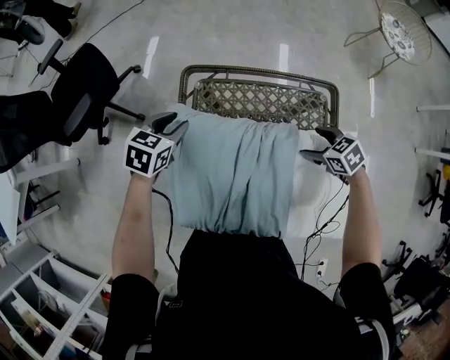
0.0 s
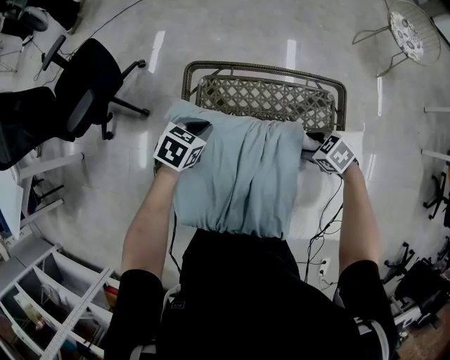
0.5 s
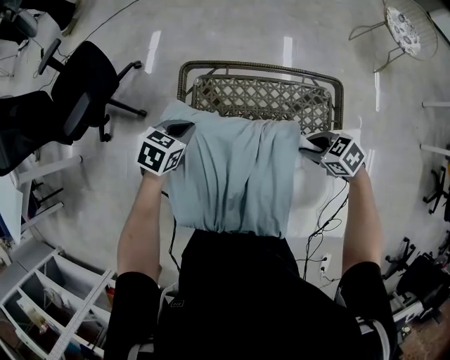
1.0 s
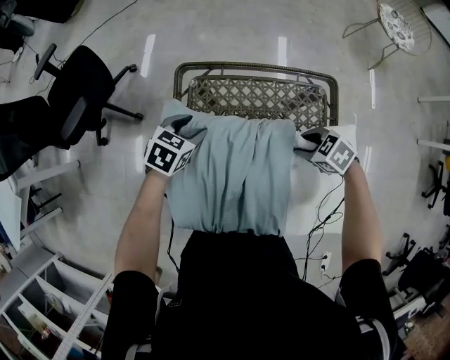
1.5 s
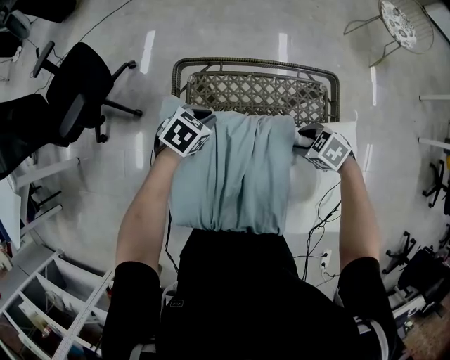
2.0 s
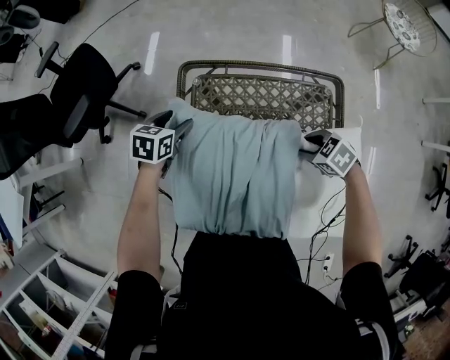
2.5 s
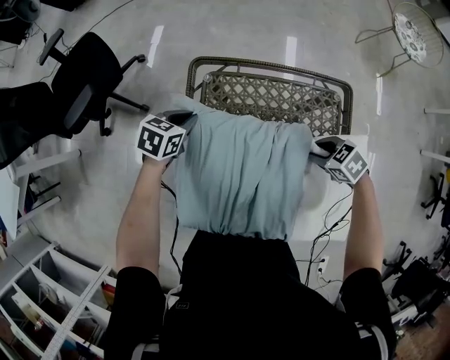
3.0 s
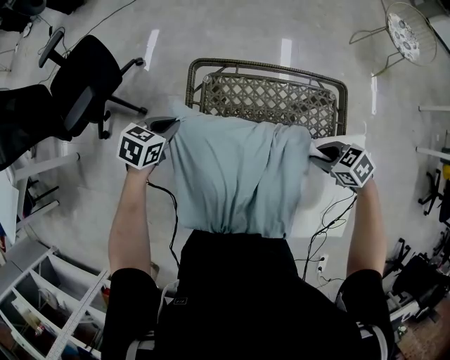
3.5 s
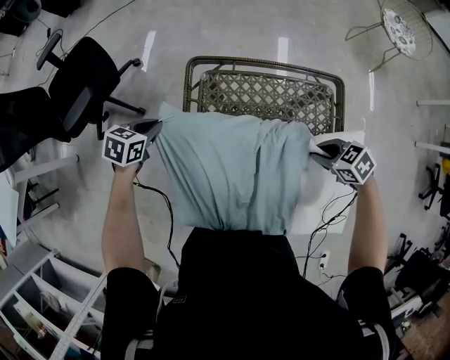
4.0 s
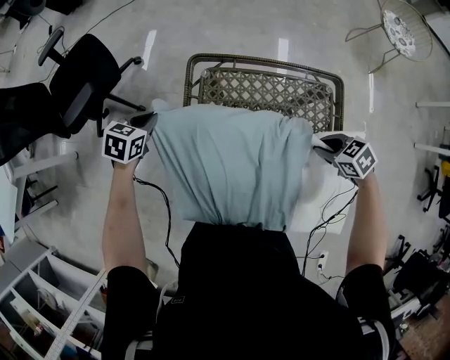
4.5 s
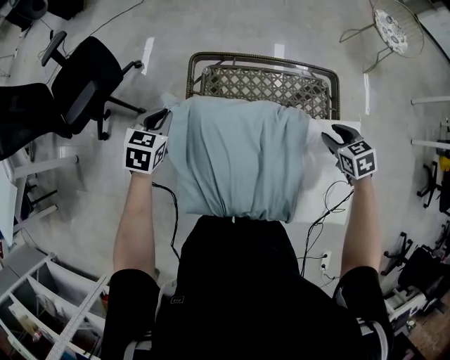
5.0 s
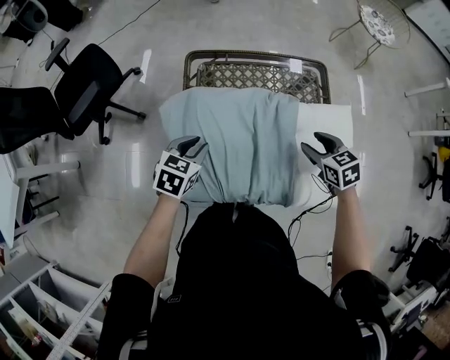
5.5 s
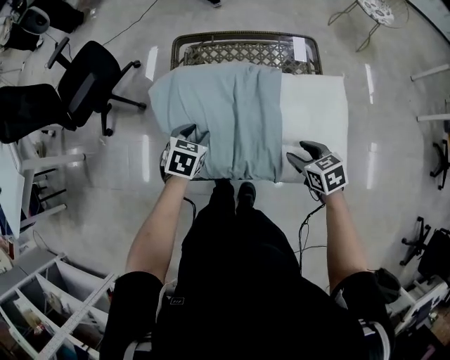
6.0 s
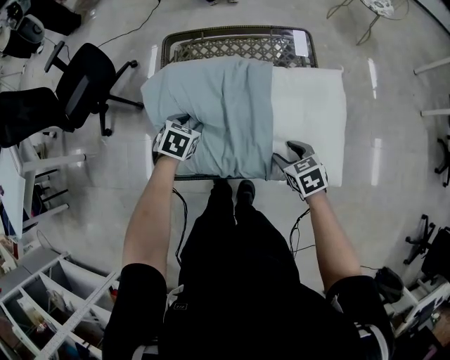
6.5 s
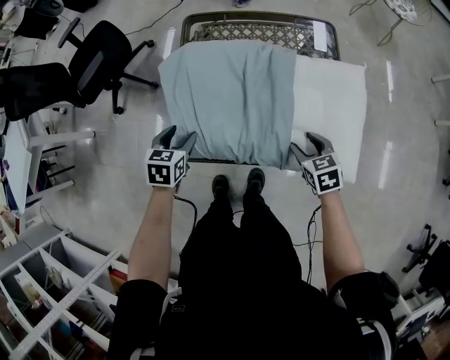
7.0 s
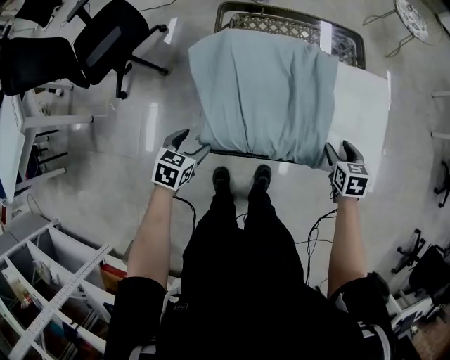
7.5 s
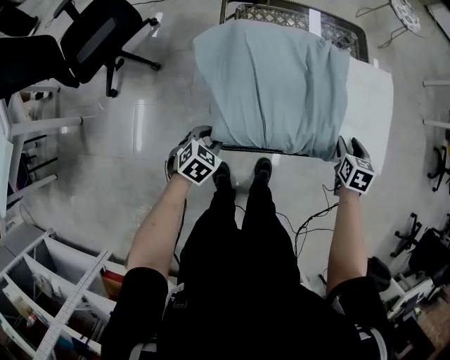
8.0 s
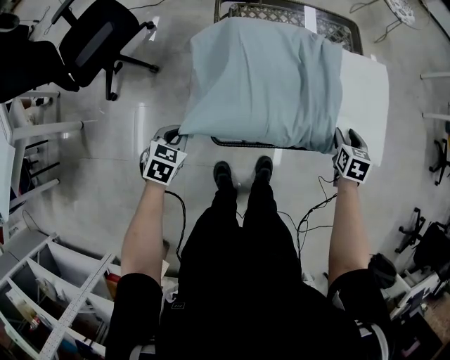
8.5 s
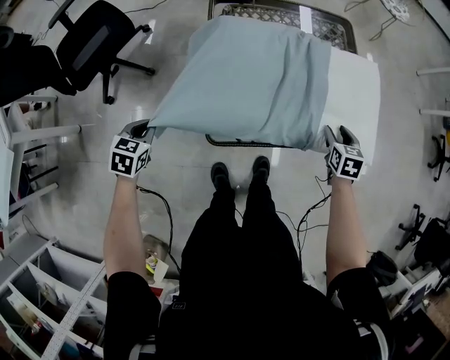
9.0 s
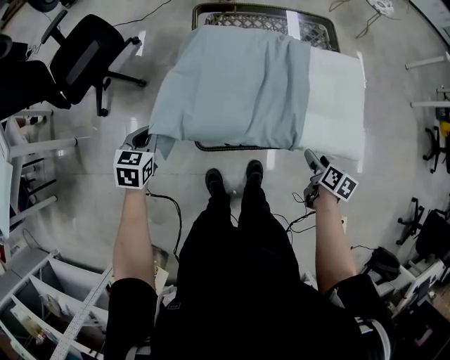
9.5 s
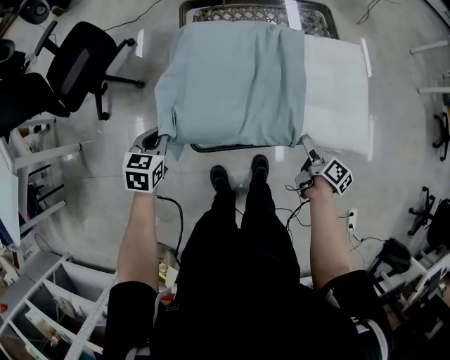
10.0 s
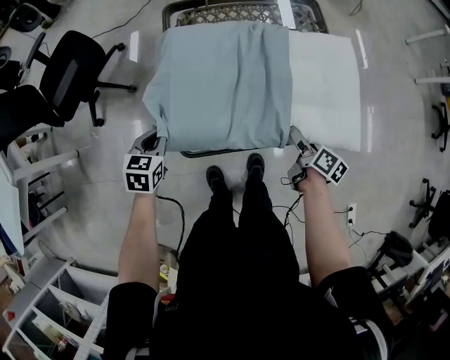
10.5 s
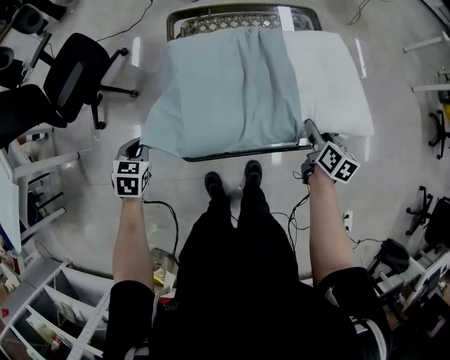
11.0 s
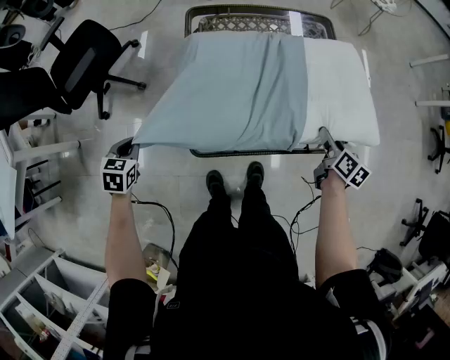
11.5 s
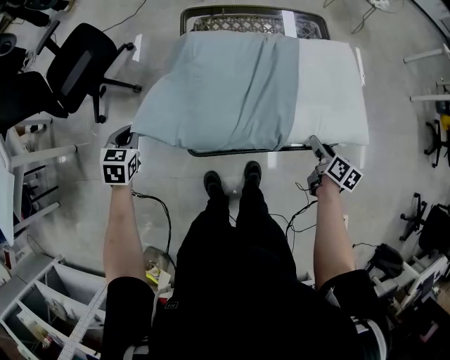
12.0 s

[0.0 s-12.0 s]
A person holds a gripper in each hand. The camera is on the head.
0.0 to 2.0 s: The right gripper moves roughly 5 cm, while the left gripper ends up roughly 10 cm from where it was.
2.0 to 4.0 s: The left gripper ends up about 20 cm from where it was, and opens and closes again. The right gripper shifts by about 5 cm.
4.0 to 6.0 s: The right gripper shifts by about 20 cm, and swivels about 30 degrees; the left gripper moves about 25 cm, and opens up.
6.0 to 8.0 s: The right gripper turns by about 40 degrees. Meanwhile the left gripper goes up and down, some 10 cm each way, reversing 2 times, and opens and closes again.
8.0 to 10.0 s: The left gripper goes some 10 cm upward and to the left, turns by roughly 20 degrees, and closes its fingers. The right gripper travels backward by some 5 cm, rotates around the line of its fingers by about 60 degrees, clockwise from behind, and opens its fingers.
10.0 to 12.0 s: The left gripper shifts some 10 cm to the left; the right gripper travels forward and back again, some 10 cm each way, and swivels approximately 30 degrees.

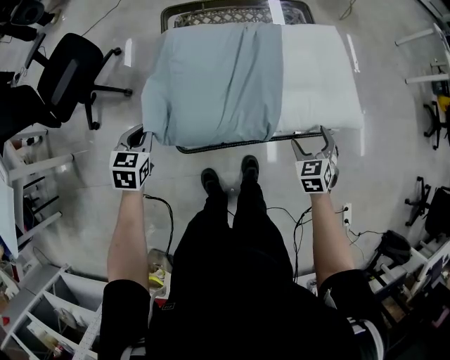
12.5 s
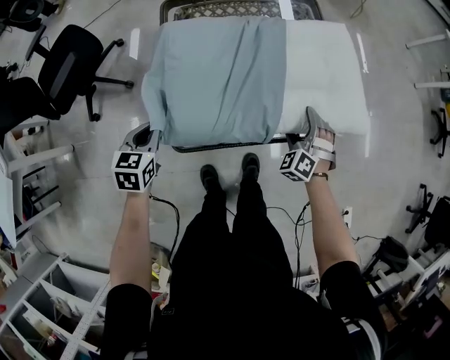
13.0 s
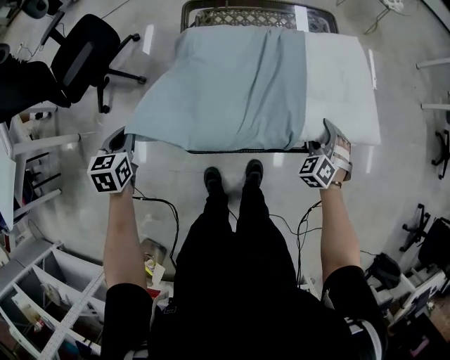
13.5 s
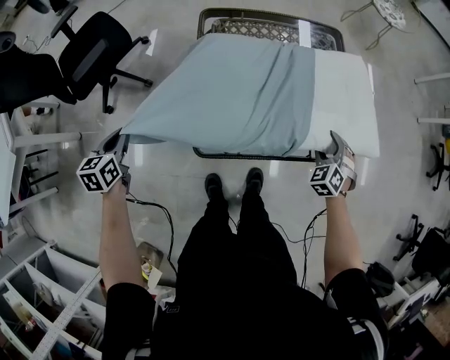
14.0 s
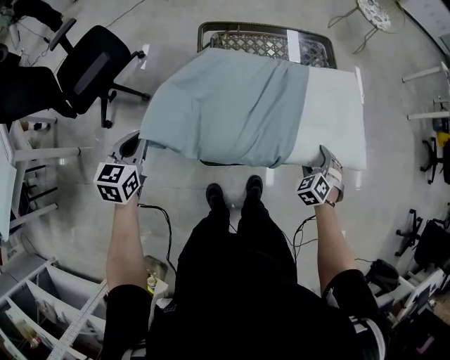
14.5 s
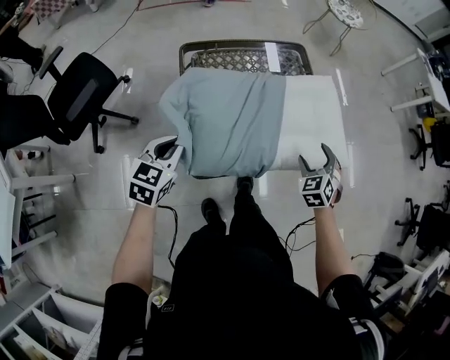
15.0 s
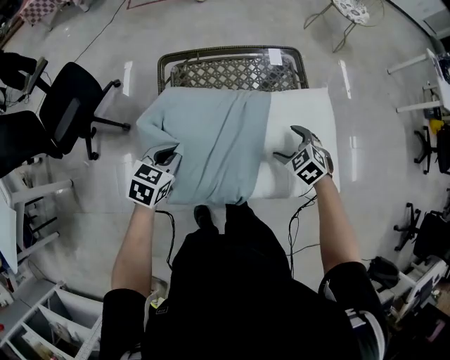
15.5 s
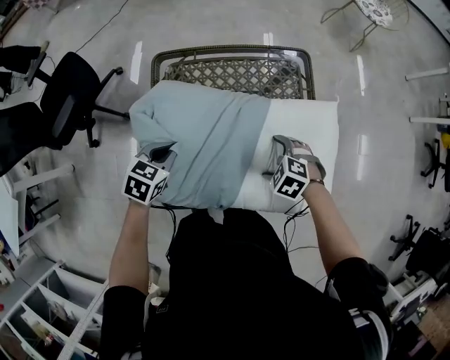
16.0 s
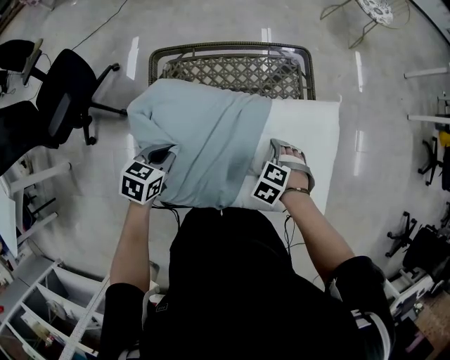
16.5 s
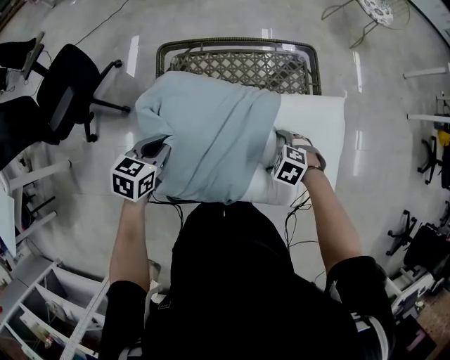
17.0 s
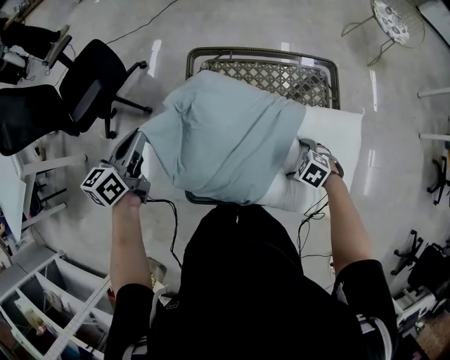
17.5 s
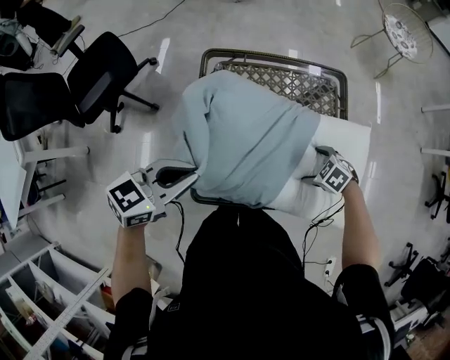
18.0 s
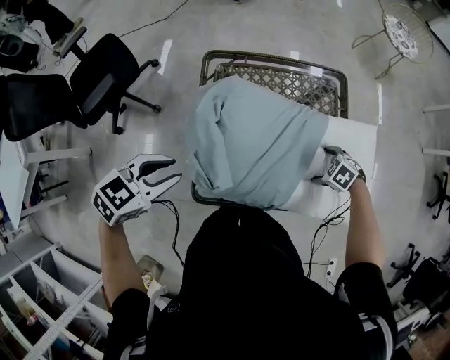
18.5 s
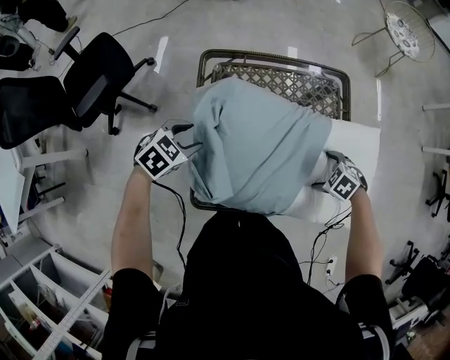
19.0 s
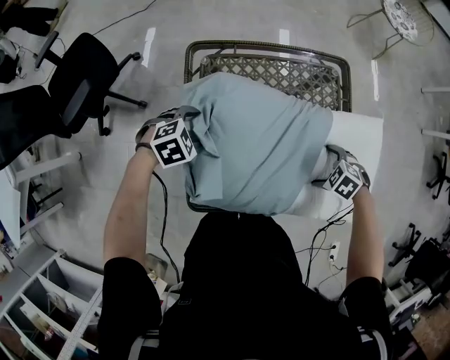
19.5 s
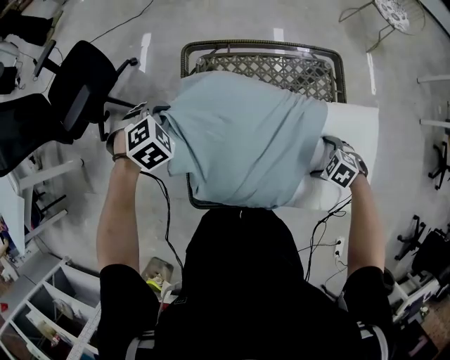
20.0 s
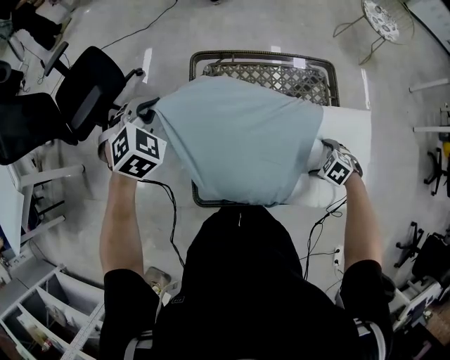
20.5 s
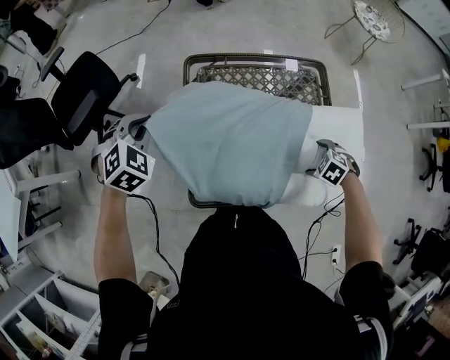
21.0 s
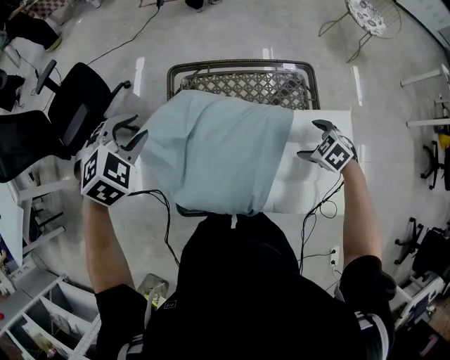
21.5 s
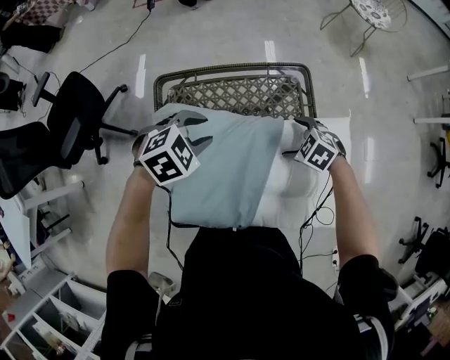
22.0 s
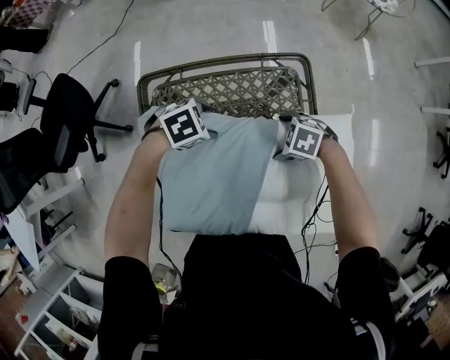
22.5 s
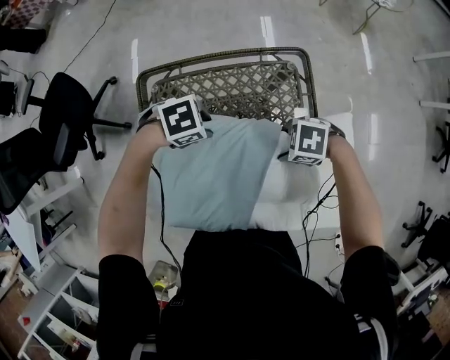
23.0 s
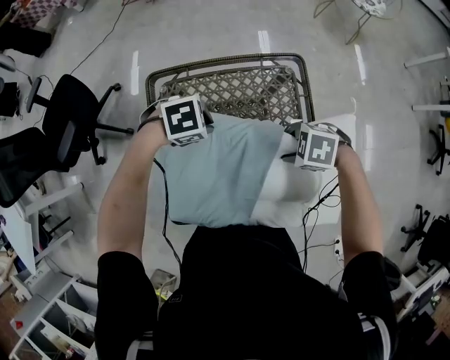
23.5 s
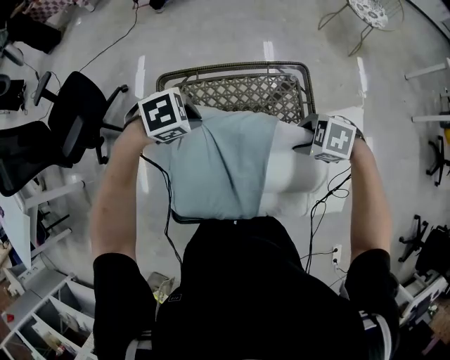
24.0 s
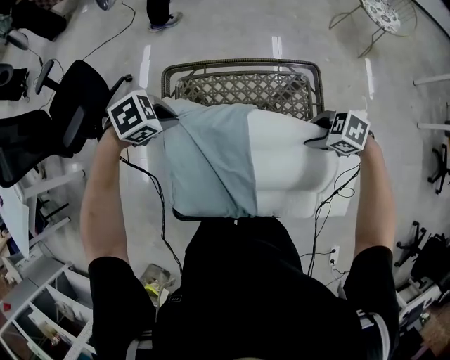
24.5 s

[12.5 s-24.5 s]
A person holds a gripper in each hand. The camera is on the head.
12.5 to 14.5 s: The left gripper moves left and right over roughly 20 cm, changing direction 2 times, while the right gripper changes its angle by some 30 degrees.
14.5 to 16.5 s: The left gripper ends up some 30 cm from where it was, and swivels about 30 degrees. The right gripper goes upward and returns, about 10 cm each way, points its fingers some 30 degrees further downward, and opens its fingers.
16.5 to 18.5 s: The right gripper changes place by roughly 5 cm; the left gripper heads upward, covering about 15 cm, rotates some 20 degrees, and opens its fingers.
18.5 to 20.5 s: The left gripper moves about 20 cm downward and comes back, changes its angle by approximately 50 degrees, and closes up.
20.5 to 22.5 s: The left gripper shifts by about 35 cm, changes its angle by approximately 50 degrees, and opens, while the right gripper reaches about 10 cm upward, then returns, and changes its angle by approximately 20 degrees.
22.5 to 24.5 s: The left gripper travels to the right and upward by roughly 20 cm, and closes up; the right gripper is displaced upward by about 10 cm, and closes up.

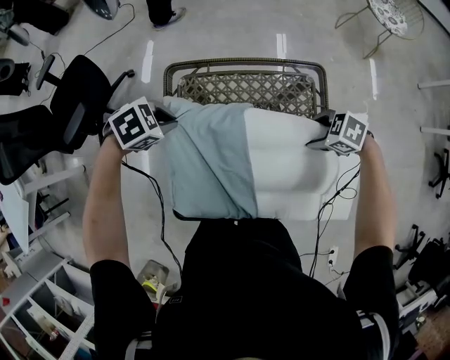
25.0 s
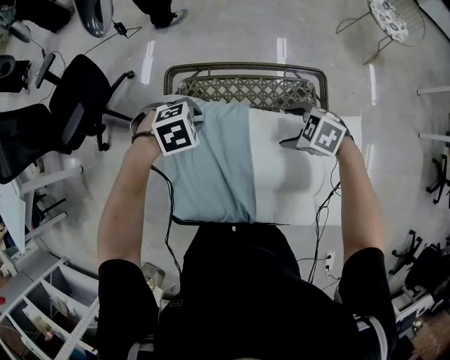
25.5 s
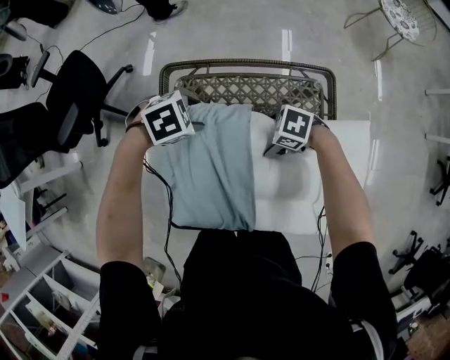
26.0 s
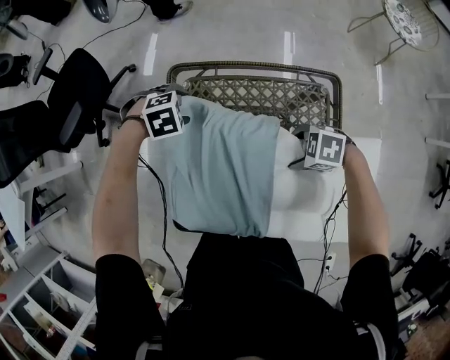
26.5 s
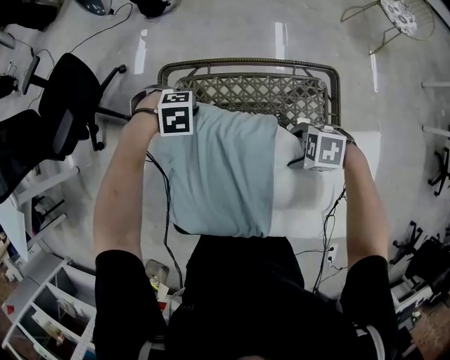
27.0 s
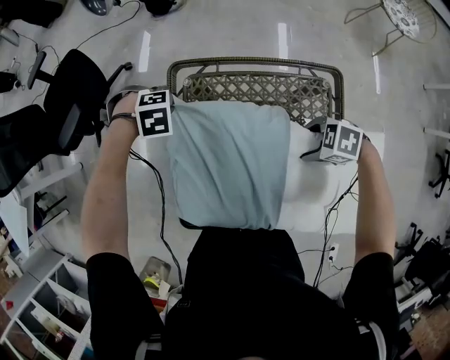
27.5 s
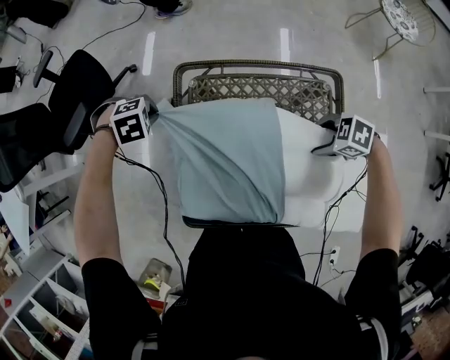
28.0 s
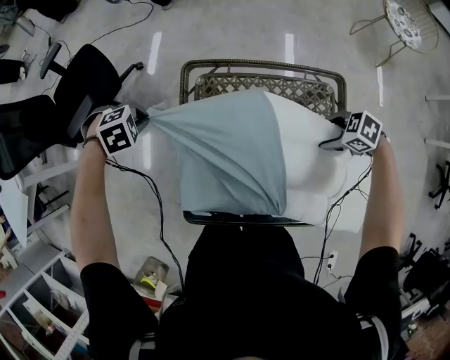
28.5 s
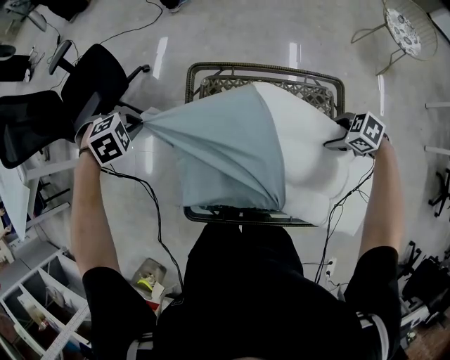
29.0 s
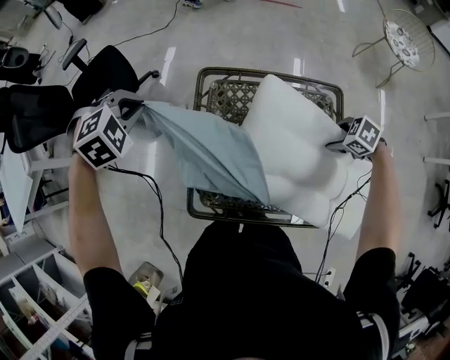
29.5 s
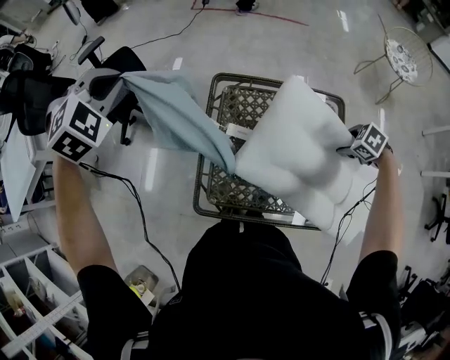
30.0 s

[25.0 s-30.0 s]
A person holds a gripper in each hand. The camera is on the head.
25.0 to 27.5 s: The left gripper moves downward, roughly 10 cm, swivels some 30 degrees, and opens and closes again. The right gripper reaches approximately 10 cm downward, then returns, and opens and closes again.
27.5 to 30.0 s: The right gripper ends up some 10 cm from where it was, and changes its angle by roughly 20 degrees. Meanwhile the left gripper shifts about 35 cm upward, and angles its fingers upward, by some 40 degrees.
